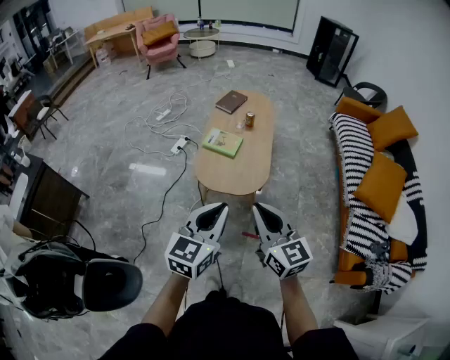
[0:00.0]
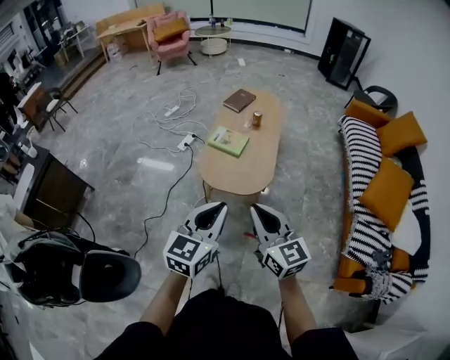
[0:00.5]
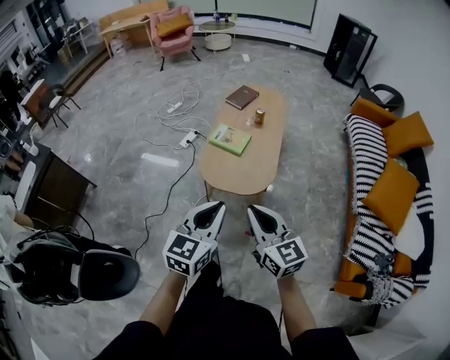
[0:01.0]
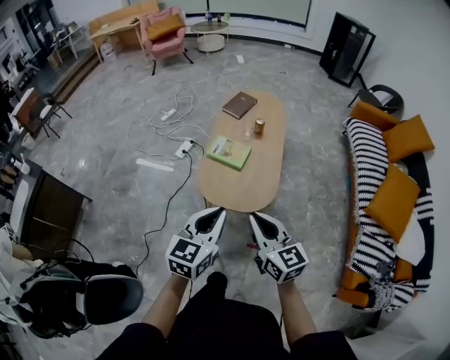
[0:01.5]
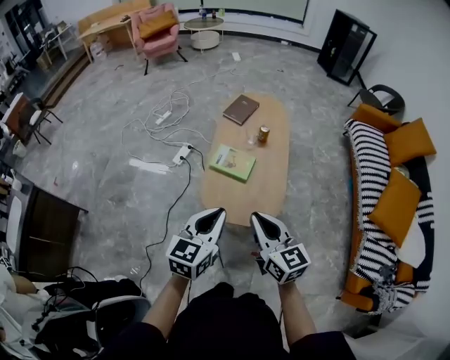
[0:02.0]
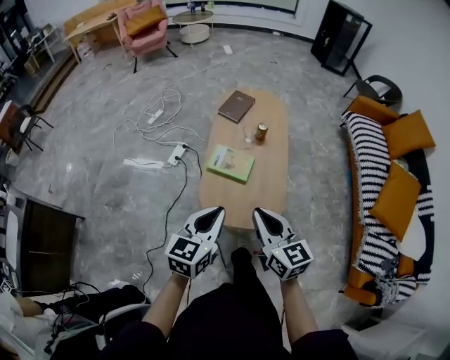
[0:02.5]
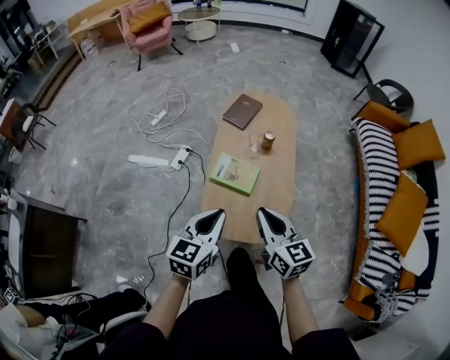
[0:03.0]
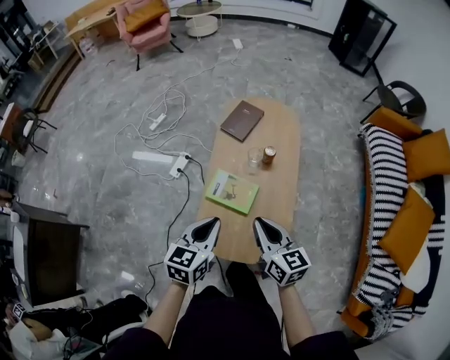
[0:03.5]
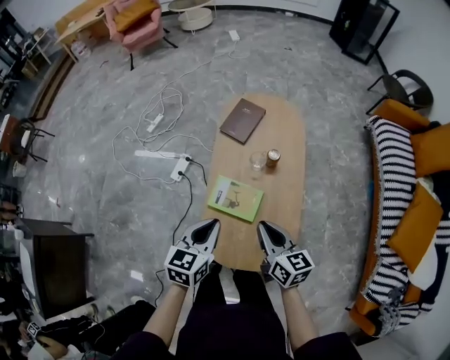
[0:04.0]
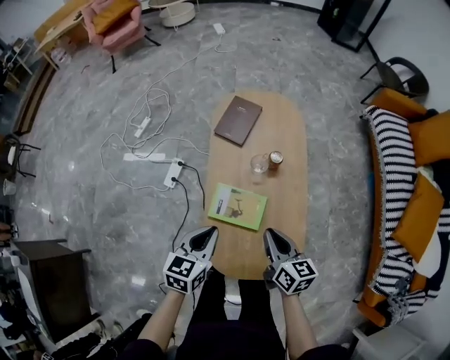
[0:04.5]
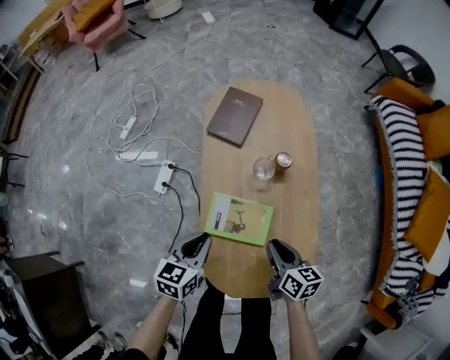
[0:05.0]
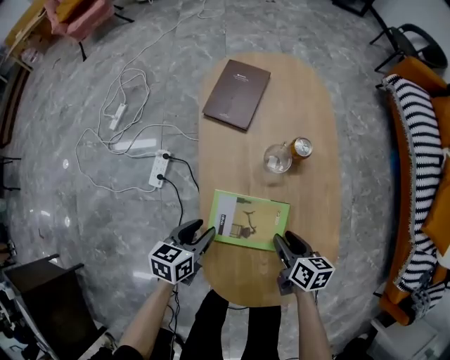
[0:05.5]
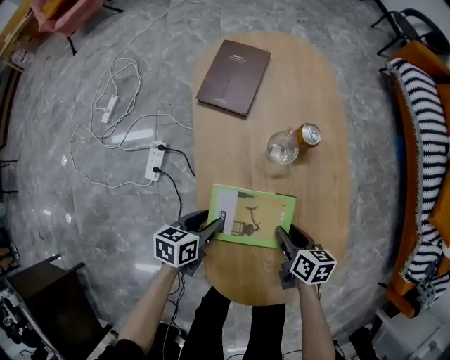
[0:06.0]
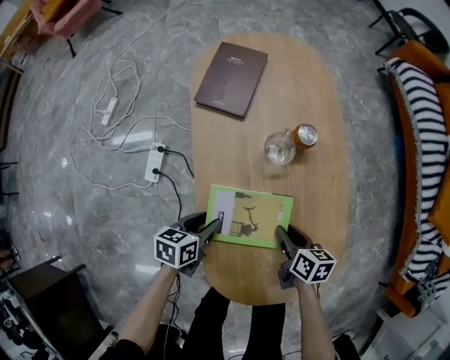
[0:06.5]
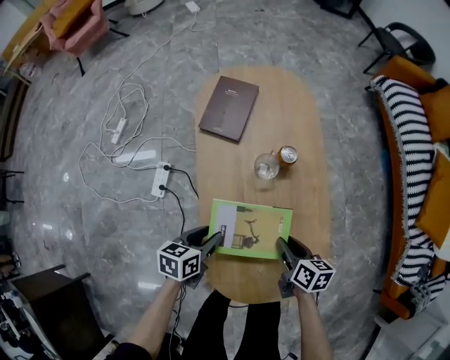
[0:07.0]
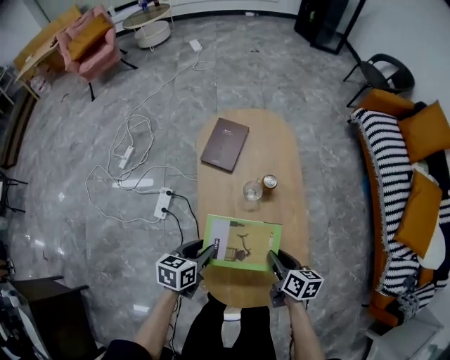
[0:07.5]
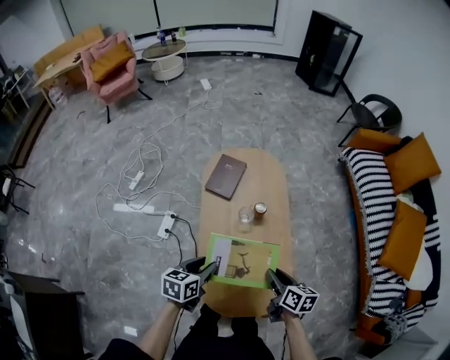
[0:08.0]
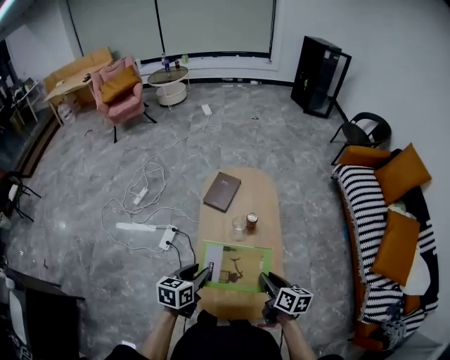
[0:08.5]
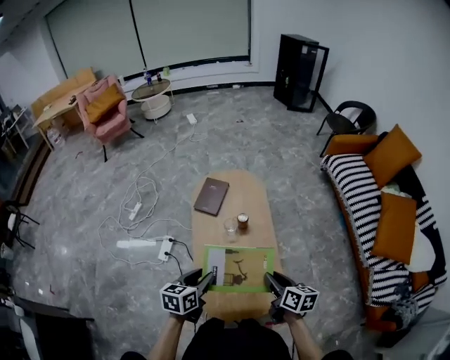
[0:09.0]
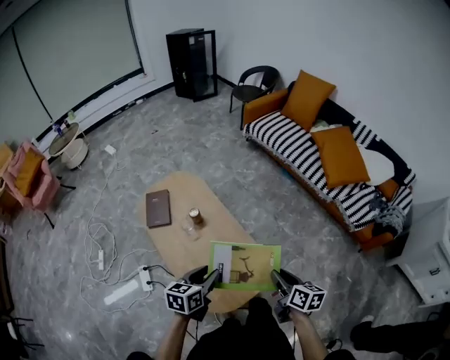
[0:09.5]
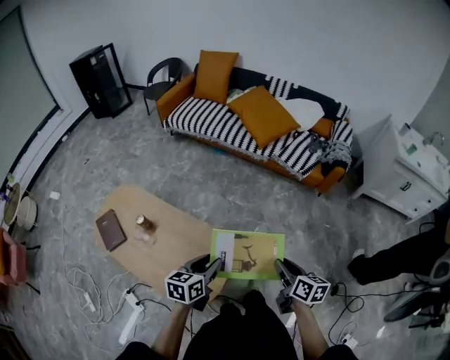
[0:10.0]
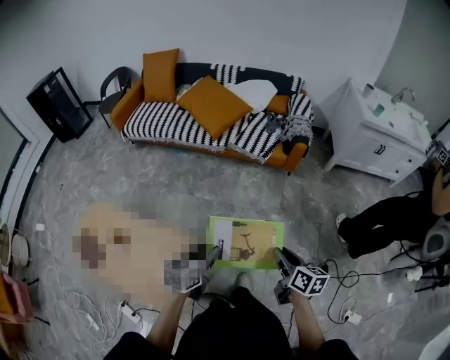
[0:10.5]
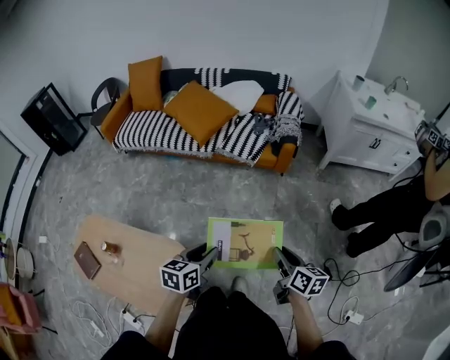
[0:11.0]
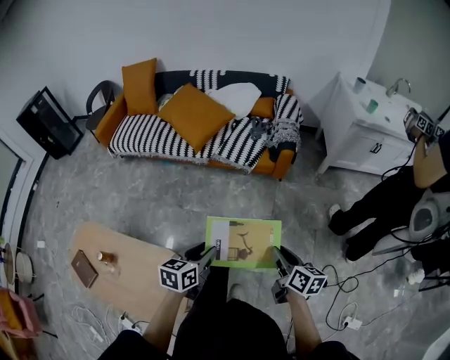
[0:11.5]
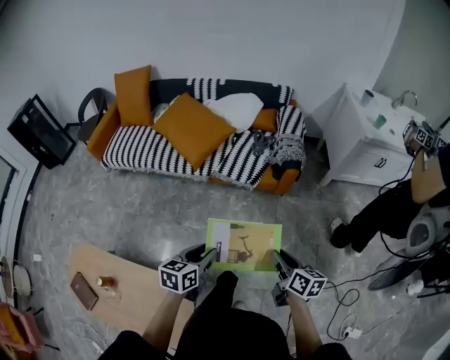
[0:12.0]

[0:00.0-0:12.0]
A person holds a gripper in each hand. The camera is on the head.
0:00.0 to 0:02.0: The two grippers go approximately 25 cm forward.
0:02.0 to 0:04.0: The two grippers go some 35 cm forward. The right gripper changes its angle by some 20 degrees.
0:04.0 to 0:06.0: Both grippers move downward, roughly 40 cm. The left gripper swivels approximately 30 degrees, and opens up. Meanwhile the right gripper swivels some 40 degrees, and opens its fingers.
0:06.0 to 0:08.0: Both grippers travel together upward, roughly 35 cm.
0:08.0 to 0:10.0: The right gripper ends up approximately 50 cm from where it was, and swivels some 60 degrees. Meanwhile the left gripper changes place by roughly 35 cm, and changes its angle by roughly 60 degrees.
0:10.0 to 0:12.0: Both grippers travel together forward and to the right, some 40 cm. The left gripper turns by approximately 20 degrees.

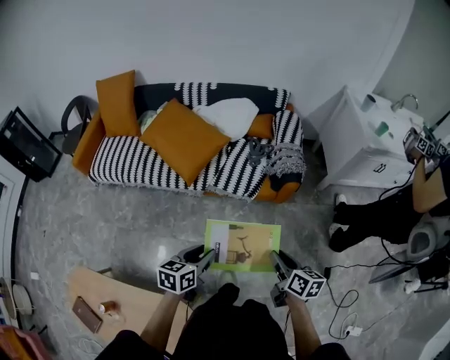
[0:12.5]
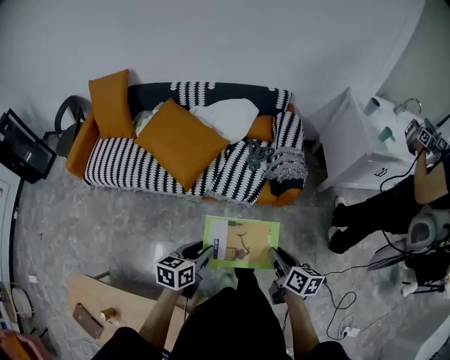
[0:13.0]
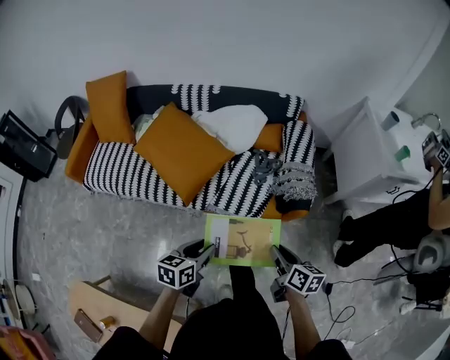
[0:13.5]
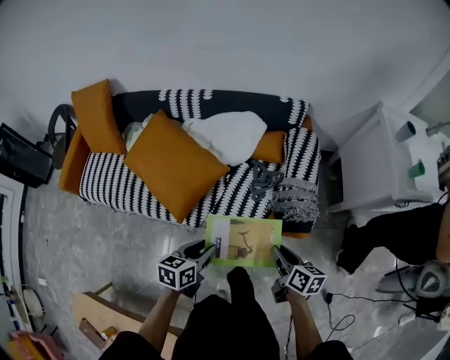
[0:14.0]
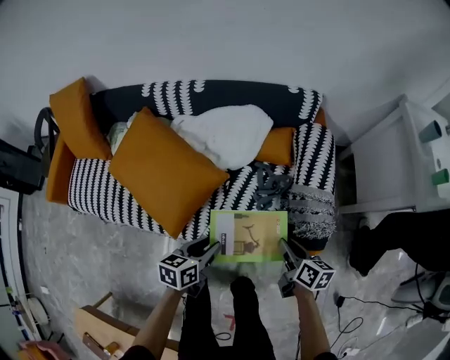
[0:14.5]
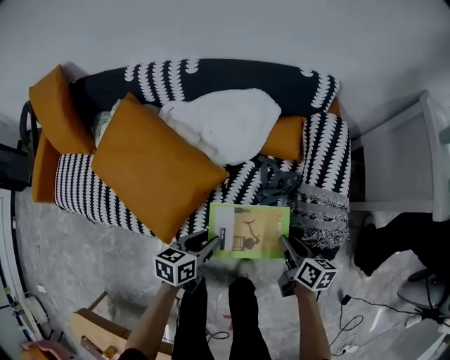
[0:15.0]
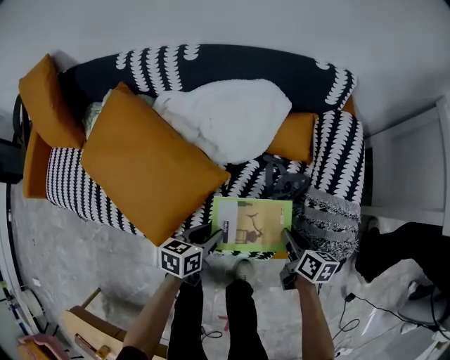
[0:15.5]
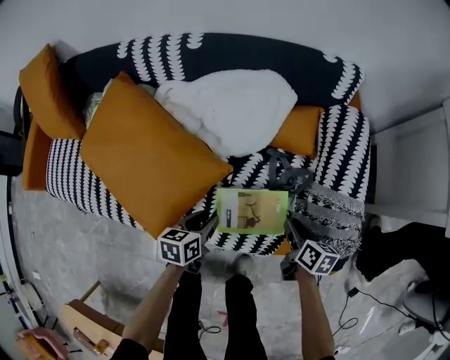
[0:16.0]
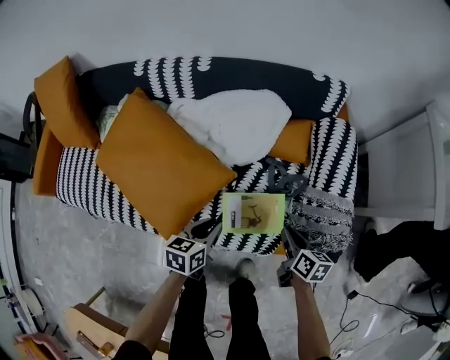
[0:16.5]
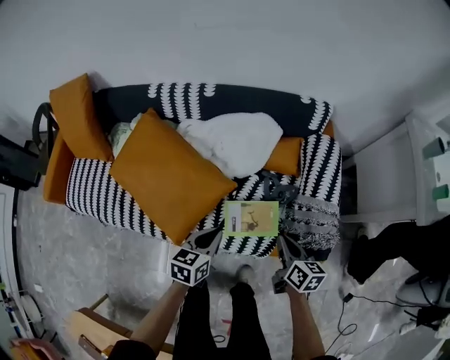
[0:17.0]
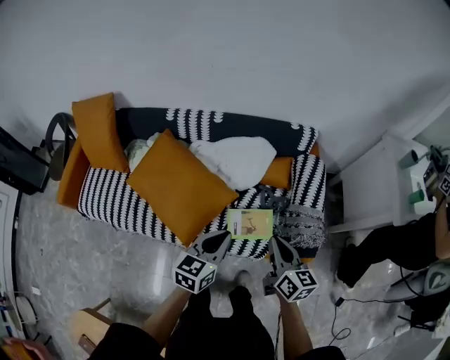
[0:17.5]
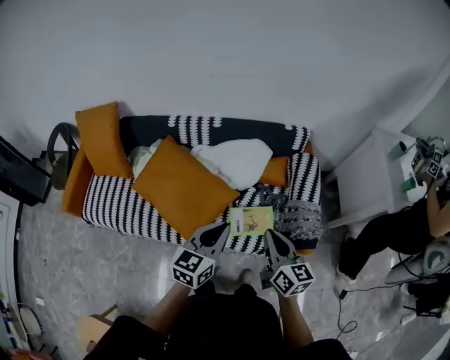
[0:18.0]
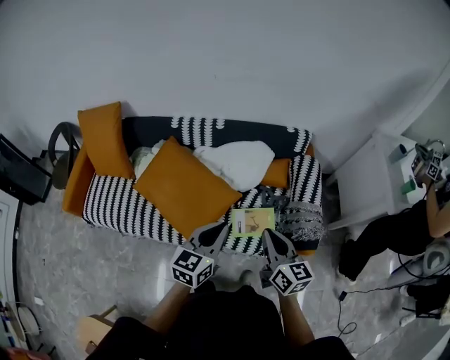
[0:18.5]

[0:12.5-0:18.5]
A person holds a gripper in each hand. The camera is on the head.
0:12.5 to 0:14.5: The two grippers travel together, forward, about 50 cm.
0:14.5 to 0:16.5: Both grippers move downward and forward, about 15 cm.
0:16.5 to 0:18.5: The two grippers go roughly 40 cm upward. The right gripper turns by approximately 40 degrees. Meanwhile the left gripper swivels some 30 degrees.

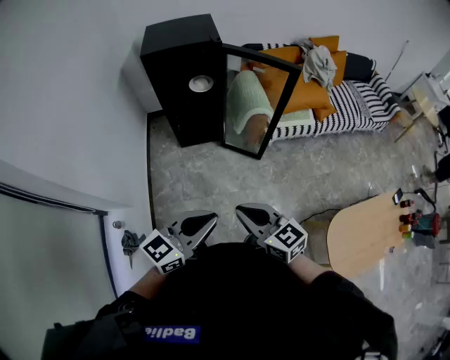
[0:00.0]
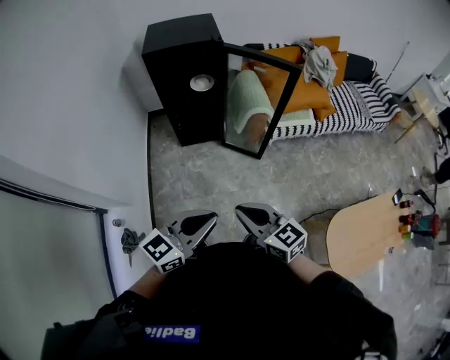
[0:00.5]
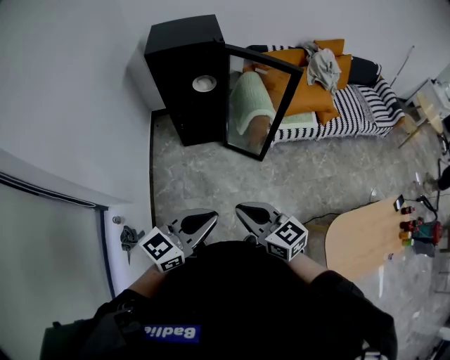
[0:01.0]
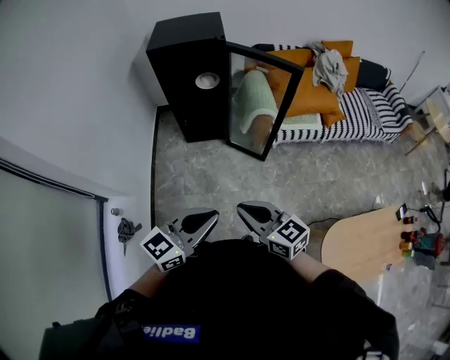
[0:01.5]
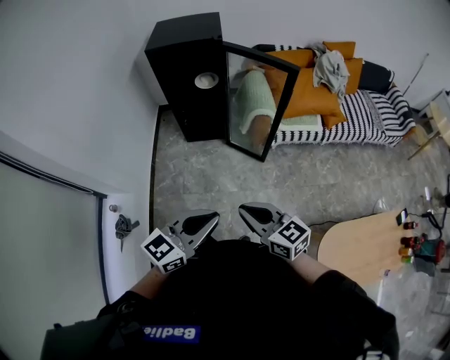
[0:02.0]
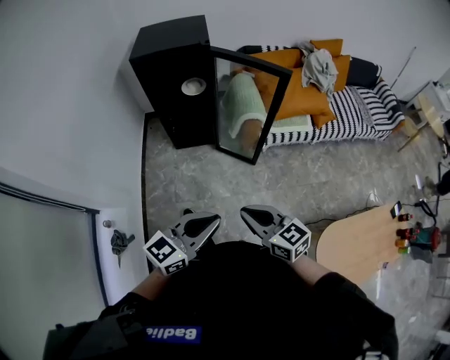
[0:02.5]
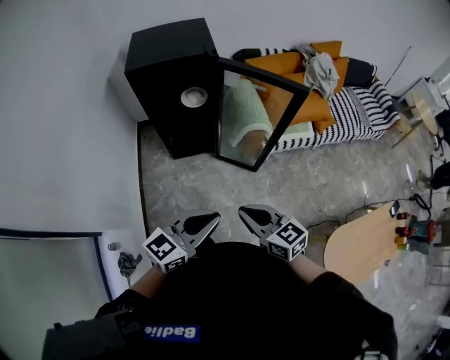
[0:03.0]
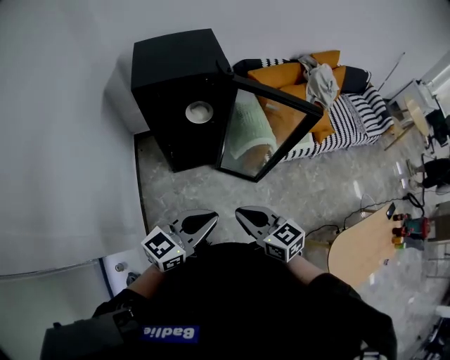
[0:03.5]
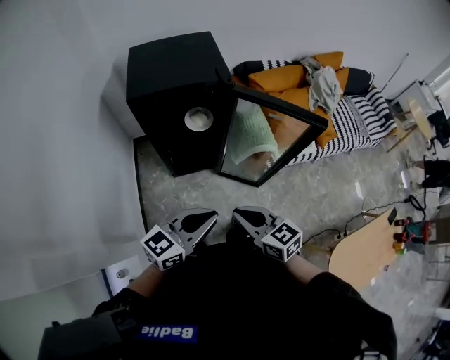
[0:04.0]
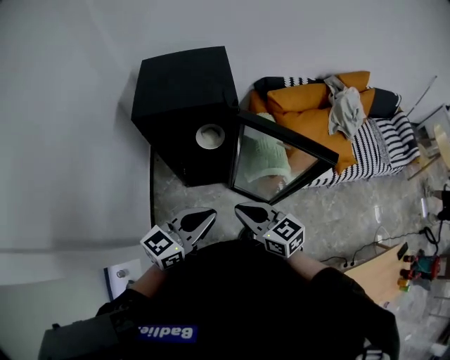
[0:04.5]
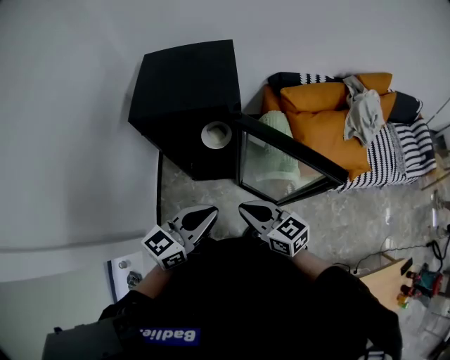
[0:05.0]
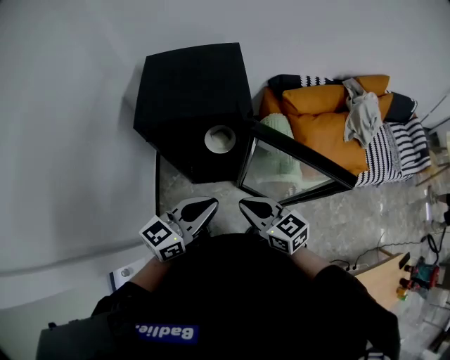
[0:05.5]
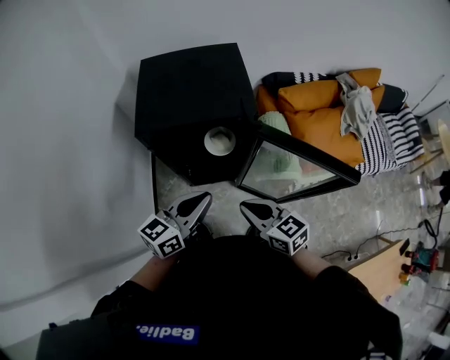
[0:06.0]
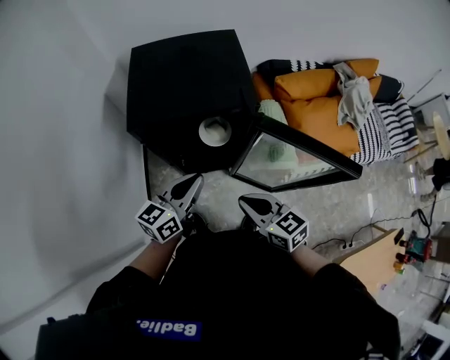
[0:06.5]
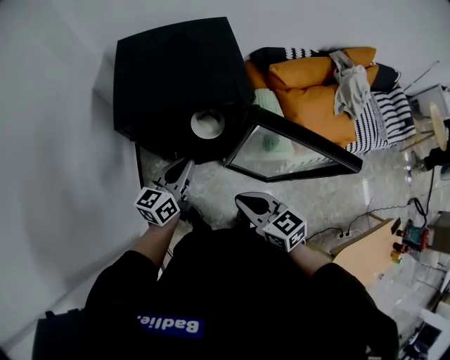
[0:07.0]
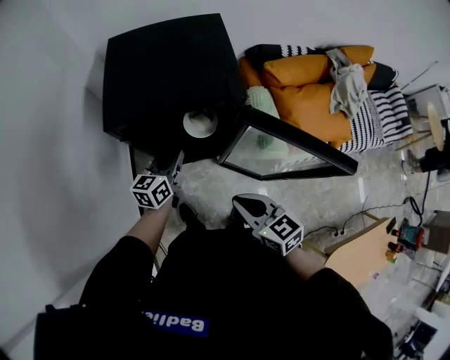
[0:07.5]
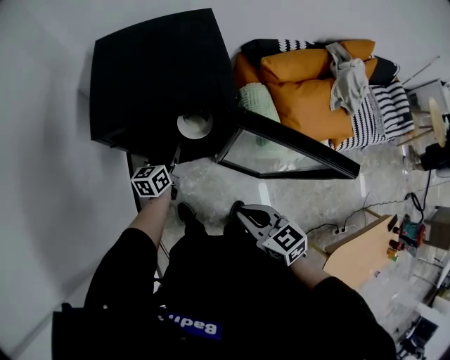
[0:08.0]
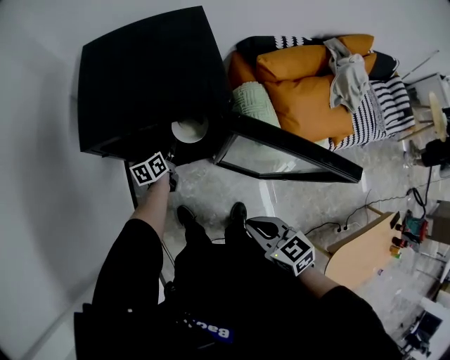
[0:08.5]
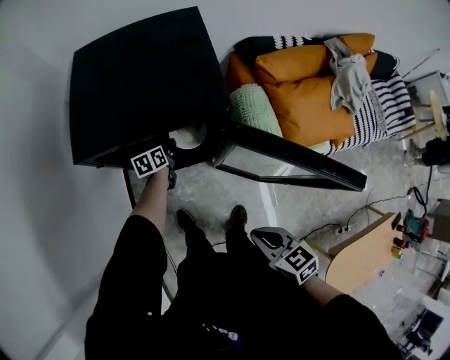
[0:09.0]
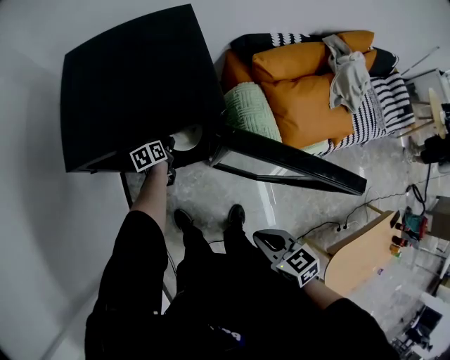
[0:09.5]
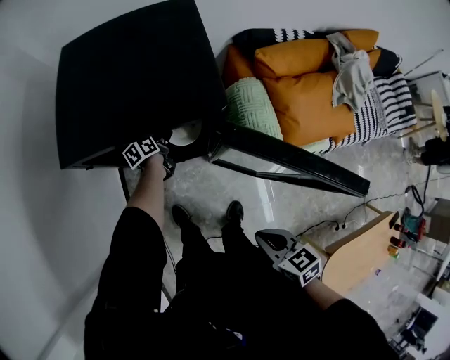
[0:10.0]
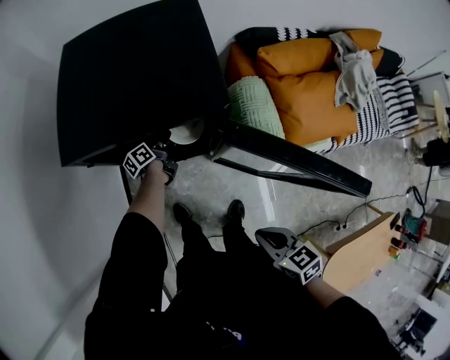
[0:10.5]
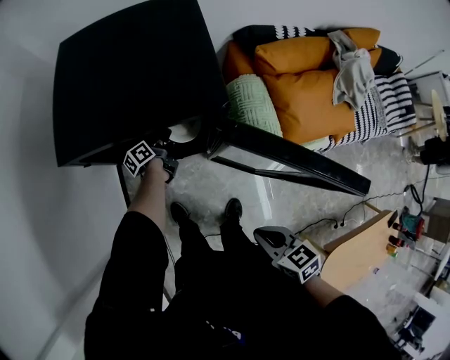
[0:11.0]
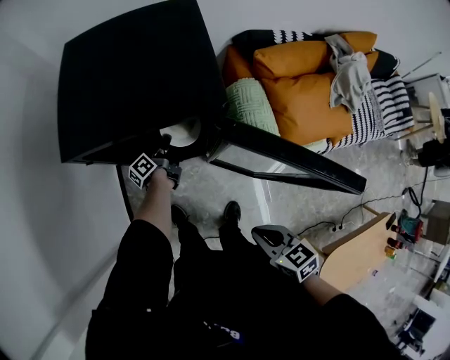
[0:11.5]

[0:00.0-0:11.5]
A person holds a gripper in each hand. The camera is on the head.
0:00.0 to 0:02.0: Both grippers move to the right, about 10 cm.
0:02.0 to 0:04.0: Both grippers move forward and to the left, roughly 35 cm.
0:04.0 to 0:06.0: The grippers both shift forward by about 20 cm.
0:06.0 to 0:07.5: The left gripper goes approximately 20 cm downward and forward.
0:07.5 to 0:09.5: The right gripper goes about 10 cm to the right, downward and backward. Meanwhile the left gripper is displaced downward and forward by roughly 25 cm, tips its fingers downward by approximately 30 degrees, and opens up.
0:09.5 to 0:11.5: The left gripper angles its fingers upward, by about 30 degrees, and closes its fingers.
